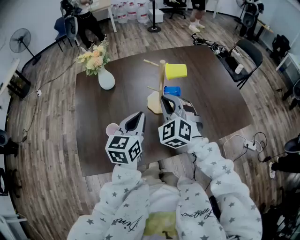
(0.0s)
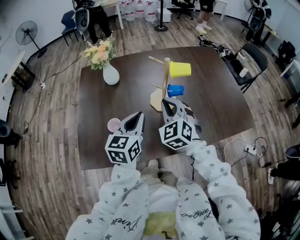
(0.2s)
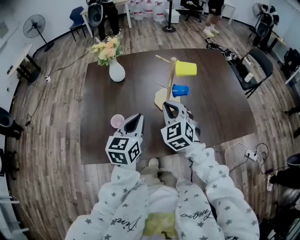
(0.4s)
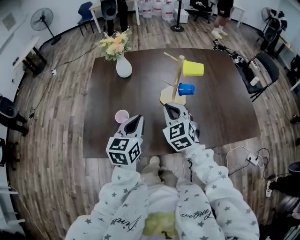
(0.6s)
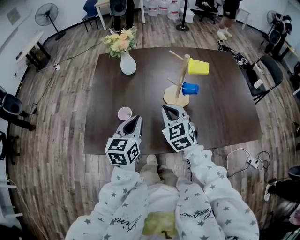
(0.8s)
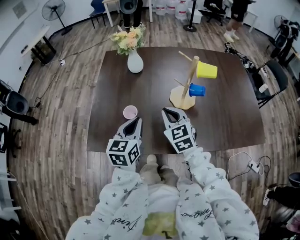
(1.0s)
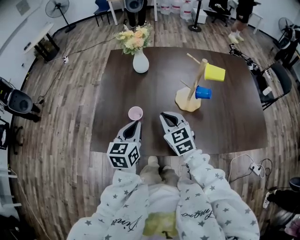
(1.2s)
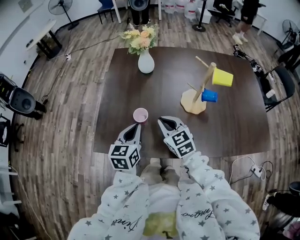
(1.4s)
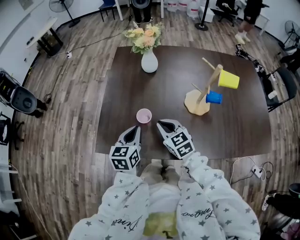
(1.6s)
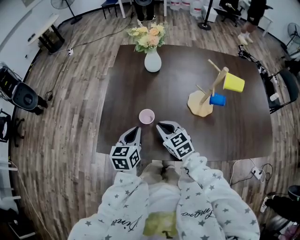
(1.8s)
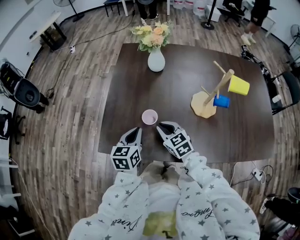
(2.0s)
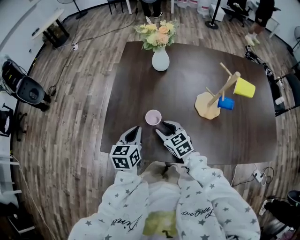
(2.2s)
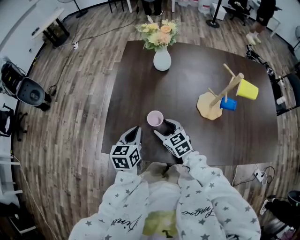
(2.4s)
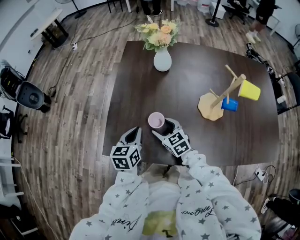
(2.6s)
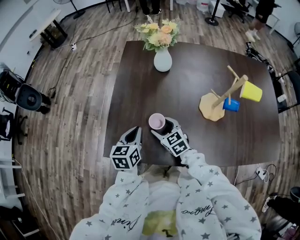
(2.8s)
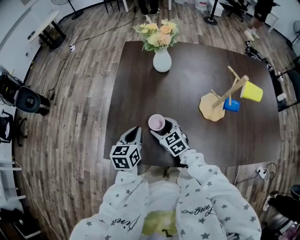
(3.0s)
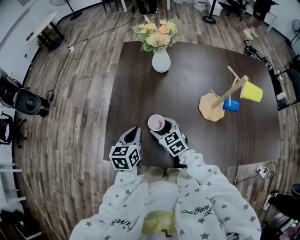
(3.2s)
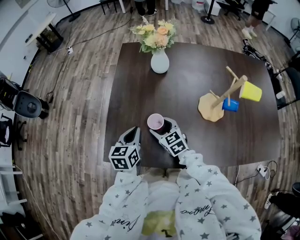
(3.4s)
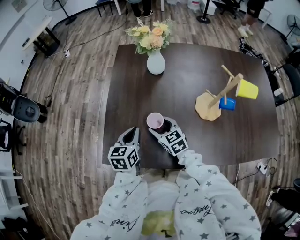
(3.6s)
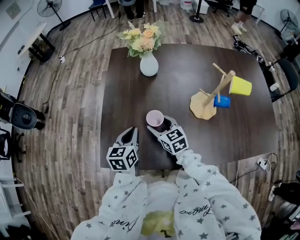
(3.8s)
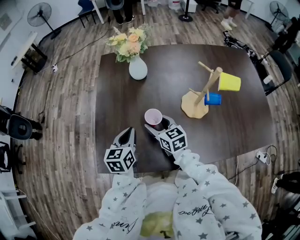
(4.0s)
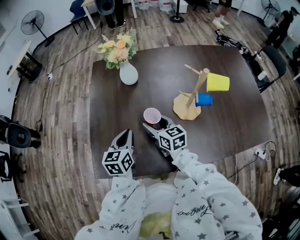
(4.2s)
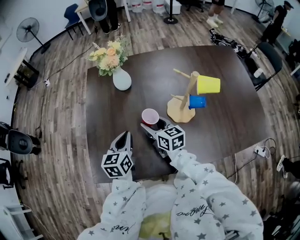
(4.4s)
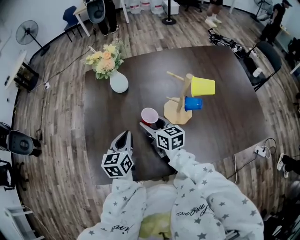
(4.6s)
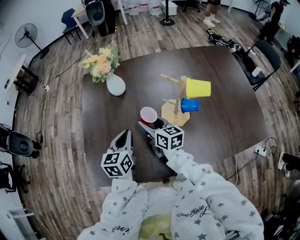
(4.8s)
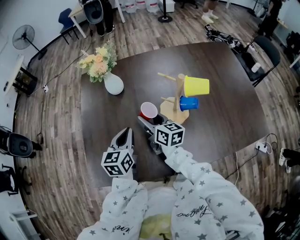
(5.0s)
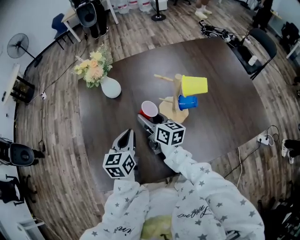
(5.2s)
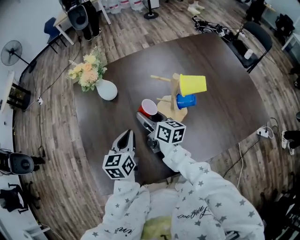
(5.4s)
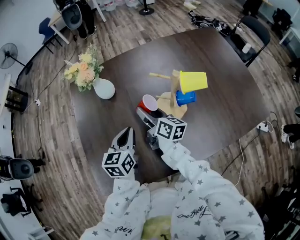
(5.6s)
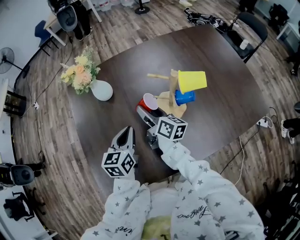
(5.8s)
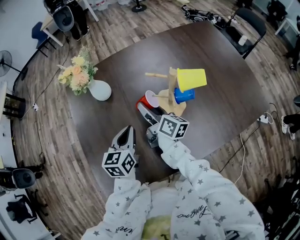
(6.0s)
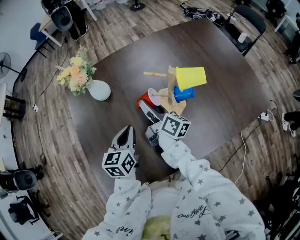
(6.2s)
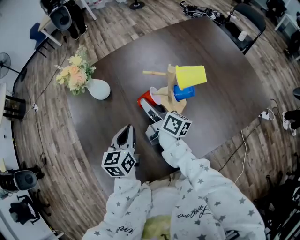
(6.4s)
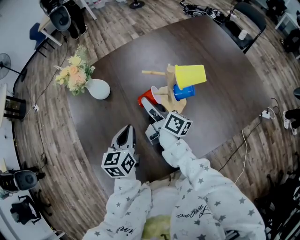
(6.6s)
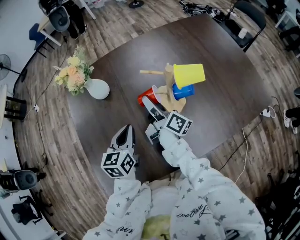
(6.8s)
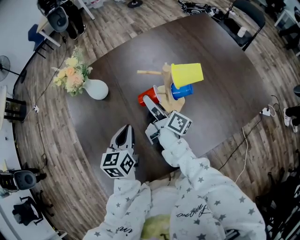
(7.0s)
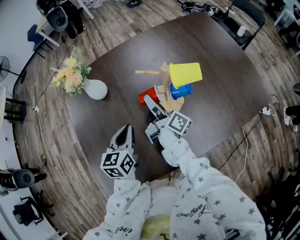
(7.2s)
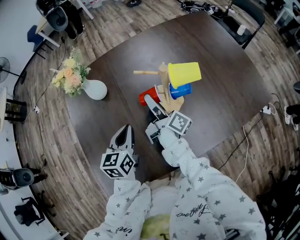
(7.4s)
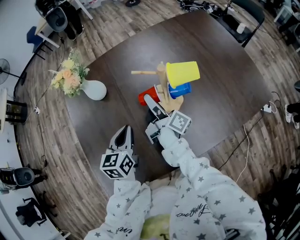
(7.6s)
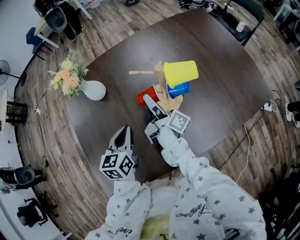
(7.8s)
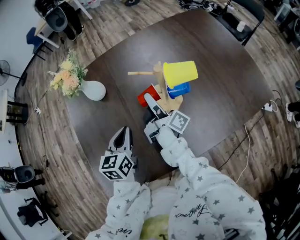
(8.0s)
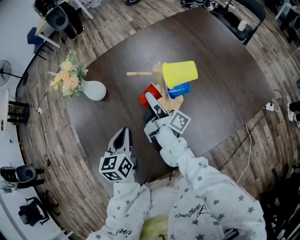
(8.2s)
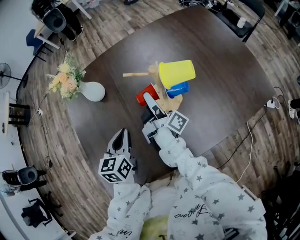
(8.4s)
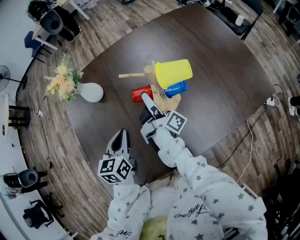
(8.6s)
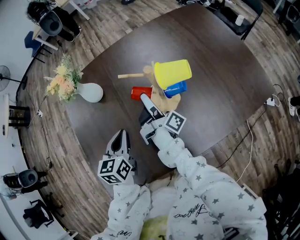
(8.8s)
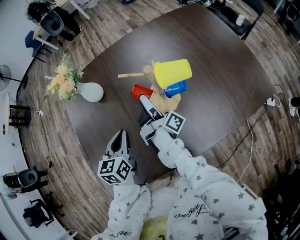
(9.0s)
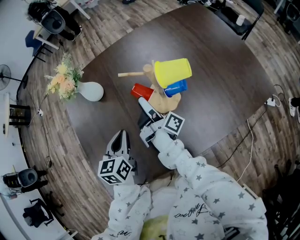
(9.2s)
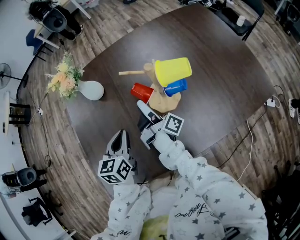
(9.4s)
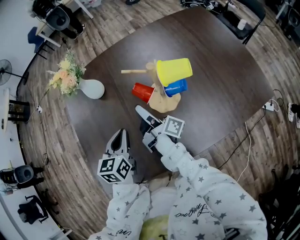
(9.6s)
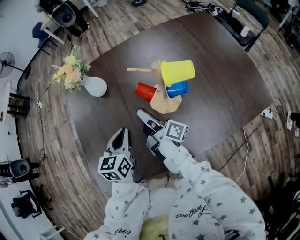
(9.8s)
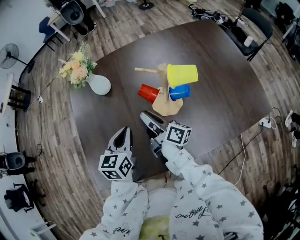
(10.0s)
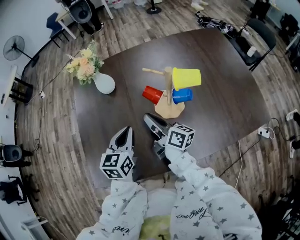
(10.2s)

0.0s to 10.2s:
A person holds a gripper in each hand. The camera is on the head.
0.0s to 1.4s: The left gripper changes place by about 20 cm, and turns by approximately 20 degrees. The right gripper shifts by approximately 20 cm, and rotates some 50 degrees.
1.4s to 3.0s: The left gripper goes about 10 cm to the left, downward and forward, while the right gripper goes about 15 cm downward, to the left and forward, and opens.
3.0s to 4.4s: The right gripper is displaced to the right and upward by roughly 15 cm, and turns by some 40 degrees; the left gripper heads to the right, covering about 10 cm.
4.4s to 5.8s: The two grippers go some 10 cm to the right and forward. The right gripper changes its angle by about 40 degrees.
5.8s to 7.2s: The right gripper travels to the right by about 5 cm, and rotates about 30 degrees.
7.2s to 8.8s: The right gripper swivels roughly 20 degrees.
8.8s to 10.2s: The right gripper heads backward, covering roughly 5 cm, changes its angle by roughly 40 degrees, and closes up.

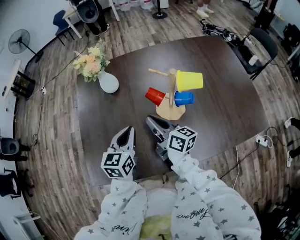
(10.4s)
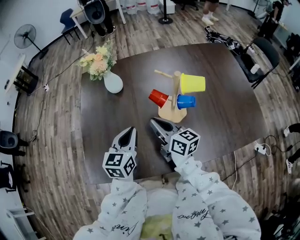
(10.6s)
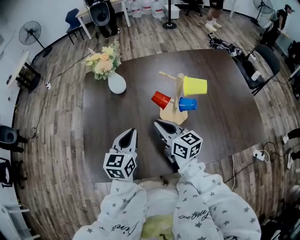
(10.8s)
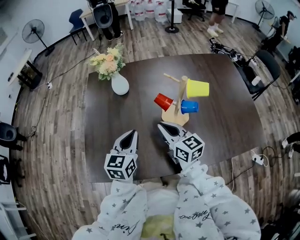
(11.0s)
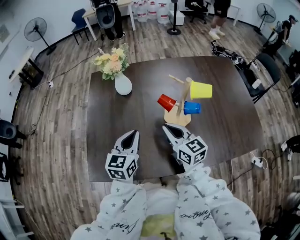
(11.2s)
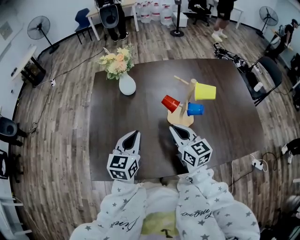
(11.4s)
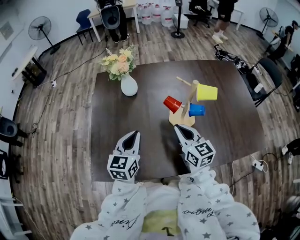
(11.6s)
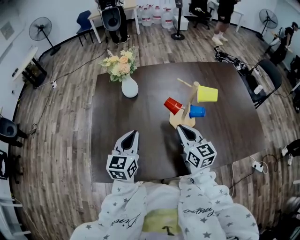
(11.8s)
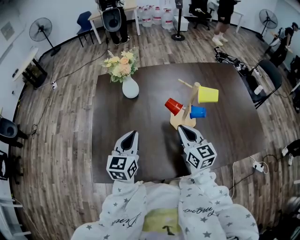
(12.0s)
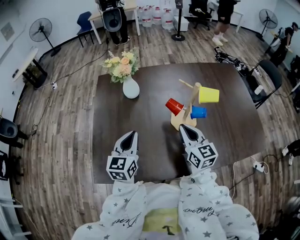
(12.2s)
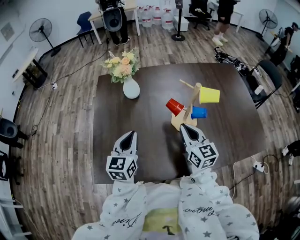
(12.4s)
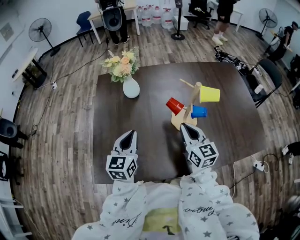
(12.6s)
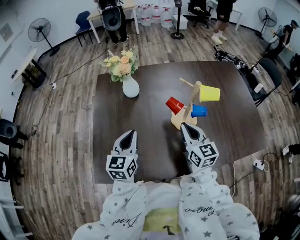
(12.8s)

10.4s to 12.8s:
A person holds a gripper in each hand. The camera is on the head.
10.4s to 11.6s: The right gripper changes place by some 5 cm, and rotates about 40 degrees, while the left gripper changes place by roughly 5 cm.
11.6s to 12.8s: There are only small adjustments of the grippers.

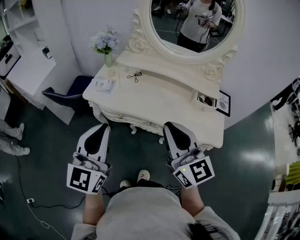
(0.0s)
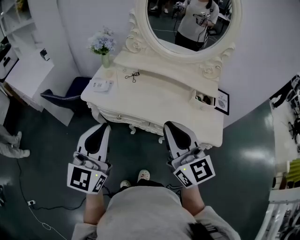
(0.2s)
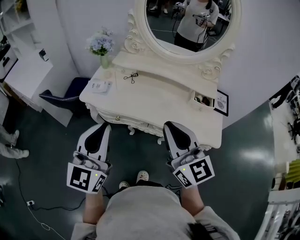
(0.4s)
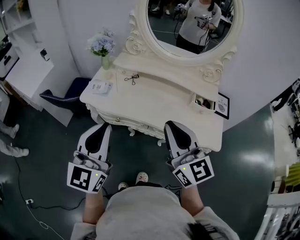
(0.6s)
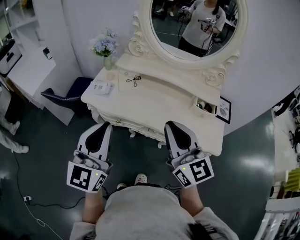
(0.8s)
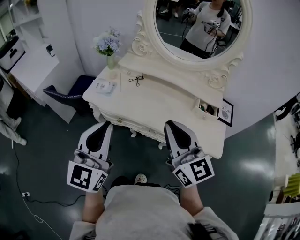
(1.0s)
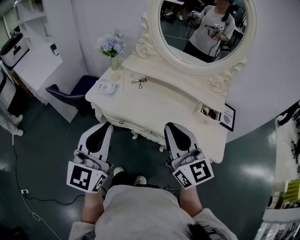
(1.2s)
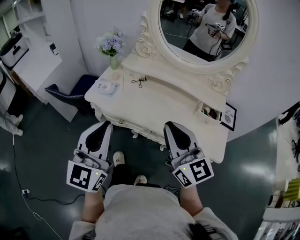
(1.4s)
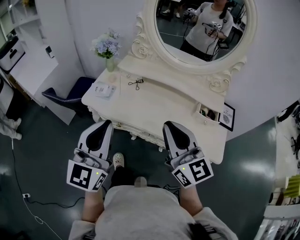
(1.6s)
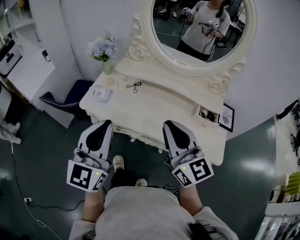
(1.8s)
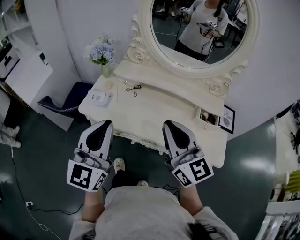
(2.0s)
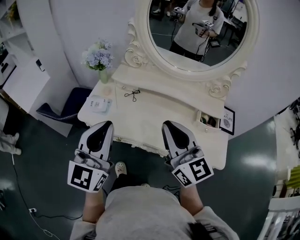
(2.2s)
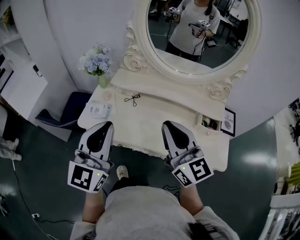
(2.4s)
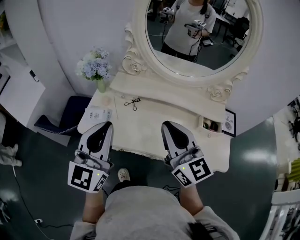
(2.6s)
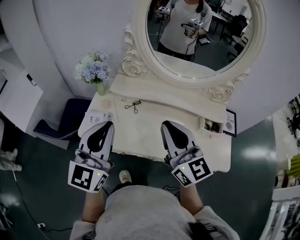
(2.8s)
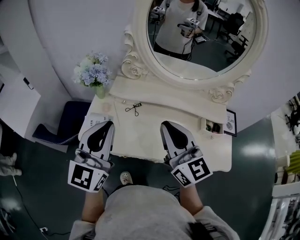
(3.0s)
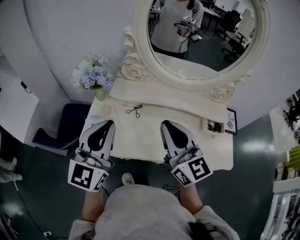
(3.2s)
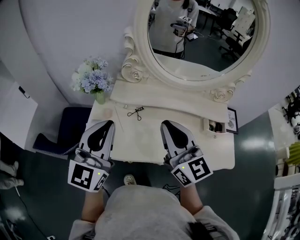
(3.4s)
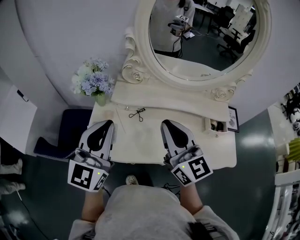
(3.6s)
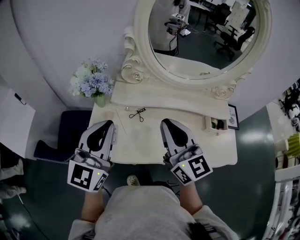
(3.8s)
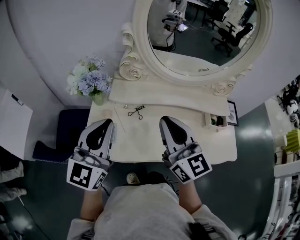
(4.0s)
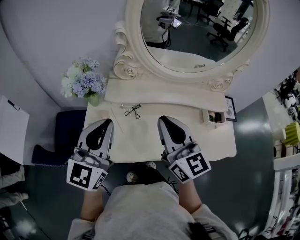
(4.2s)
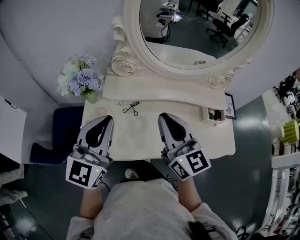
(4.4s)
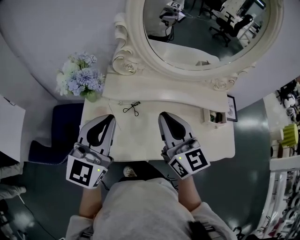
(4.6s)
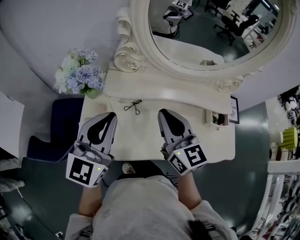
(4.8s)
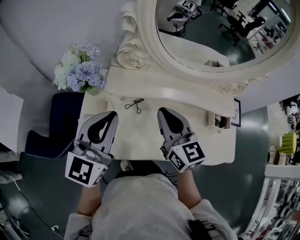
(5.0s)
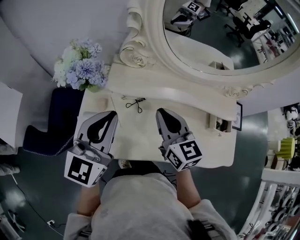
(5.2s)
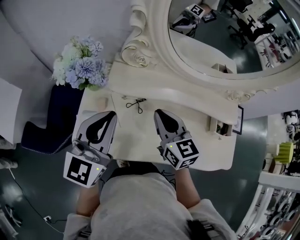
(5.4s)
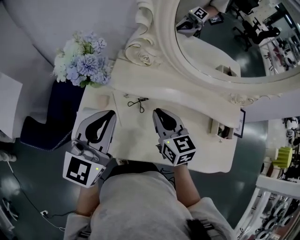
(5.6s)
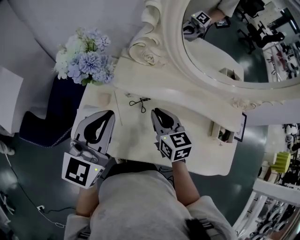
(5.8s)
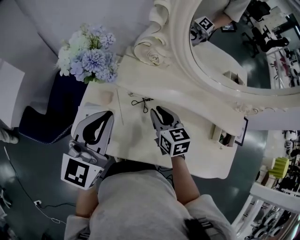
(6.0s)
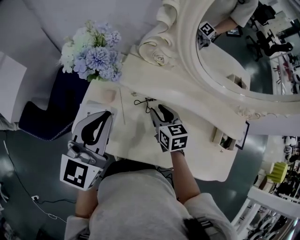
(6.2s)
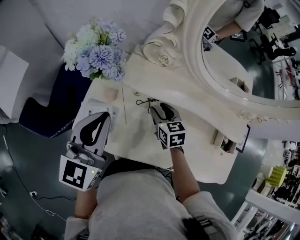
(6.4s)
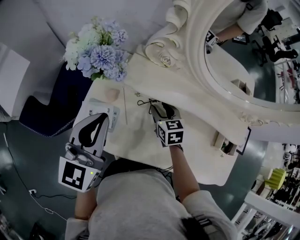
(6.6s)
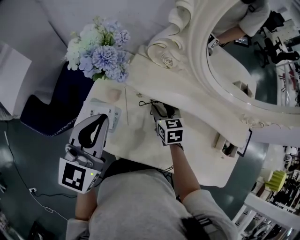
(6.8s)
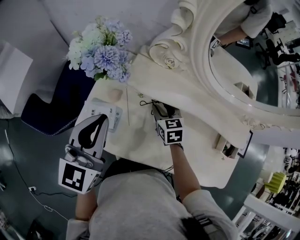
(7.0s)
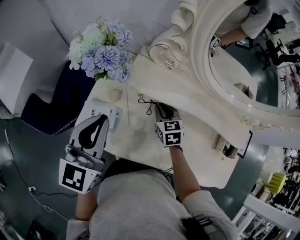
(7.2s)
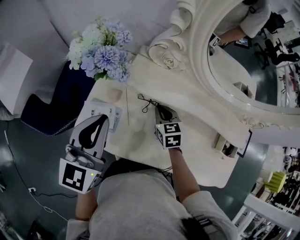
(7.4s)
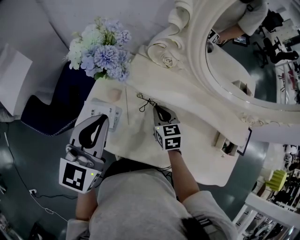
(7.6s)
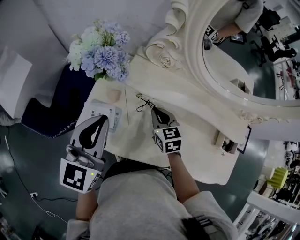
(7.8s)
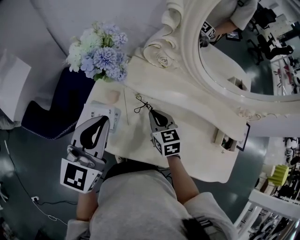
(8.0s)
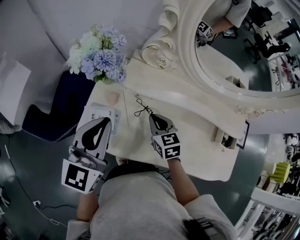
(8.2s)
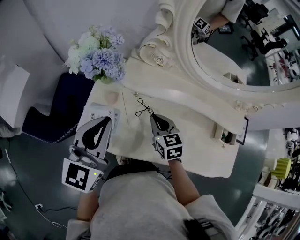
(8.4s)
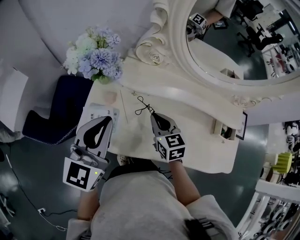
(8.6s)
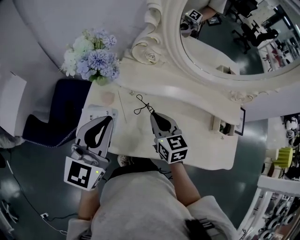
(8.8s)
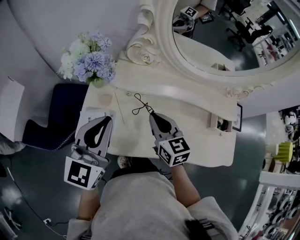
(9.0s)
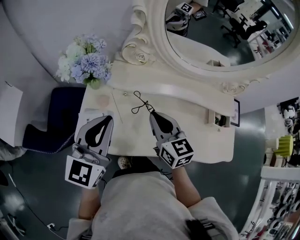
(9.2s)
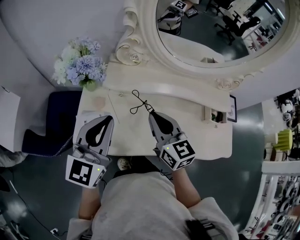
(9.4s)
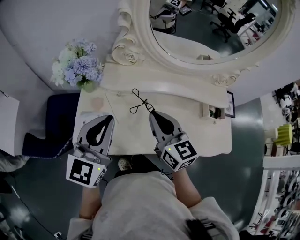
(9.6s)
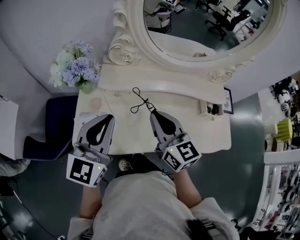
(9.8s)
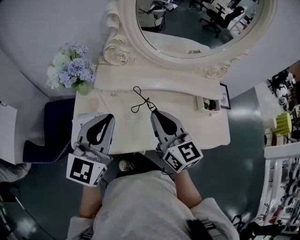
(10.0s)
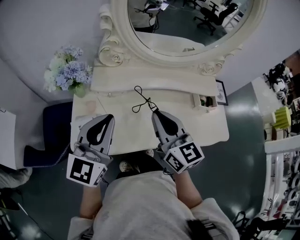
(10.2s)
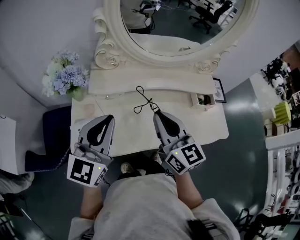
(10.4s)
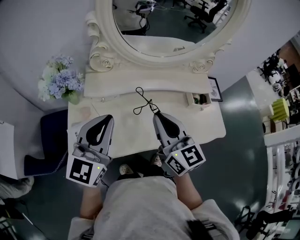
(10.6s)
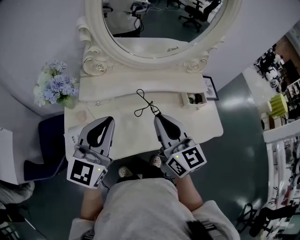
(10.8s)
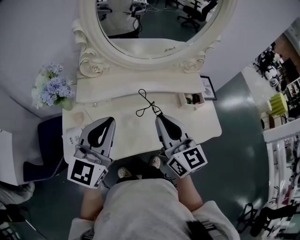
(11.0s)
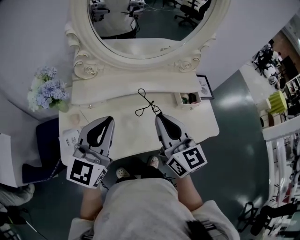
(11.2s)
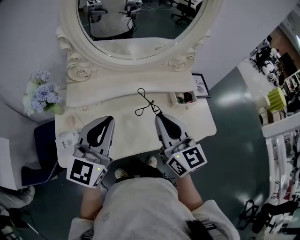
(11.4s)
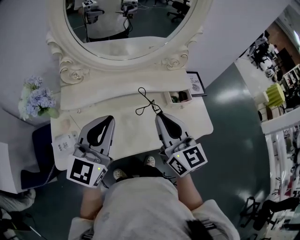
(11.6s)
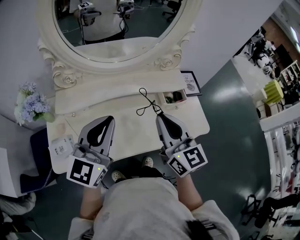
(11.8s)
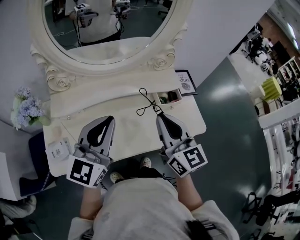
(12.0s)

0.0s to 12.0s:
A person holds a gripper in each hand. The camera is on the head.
0.0s to 1.6s: The two grippers go some 5 cm forward.
1.6s to 3.0s: The two grippers go some 20 cm forward.
3.0s to 4.4s: Both grippers travel together forward, approximately 5 cm.
4.4s to 6.0s: The right gripper travels downward and forward by some 25 cm, and tips its fingers downward by approximately 40 degrees. The left gripper shifts roughly 10 cm downward and forward.
6.0s to 7.6s: The right gripper goes about 5 cm downward, and opens, then closes once more.
7.6s to 9.0s: The right gripper goes approximately 15 cm upward and backward.
9.0s to 10.4s: The left gripper is displaced to the right by approximately 5 cm; the right gripper goes approximately 15 cm upward, backward and to the right, and swivels approximately 20 degrees.
10.4s to 12.0s: Both grippers travel together to the right, roughly 20 cm.
